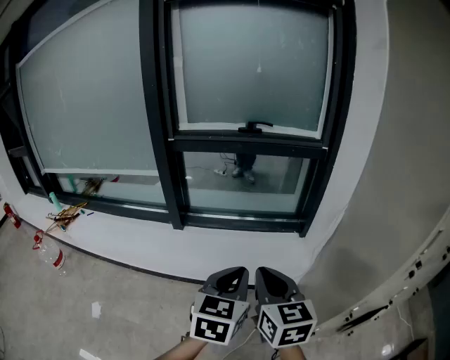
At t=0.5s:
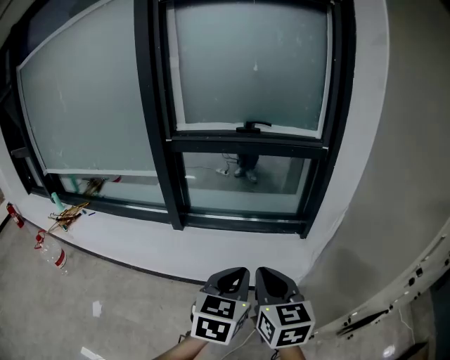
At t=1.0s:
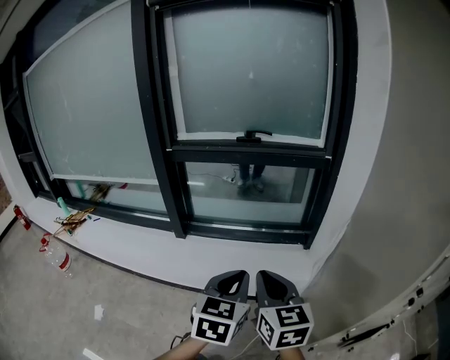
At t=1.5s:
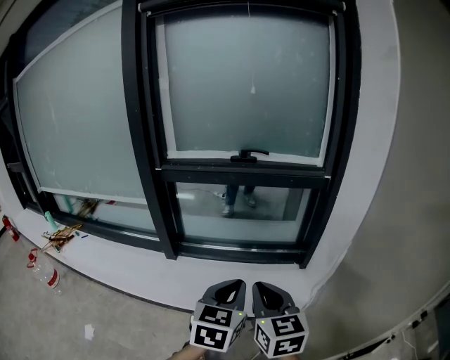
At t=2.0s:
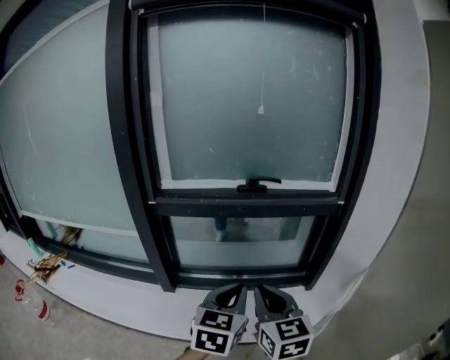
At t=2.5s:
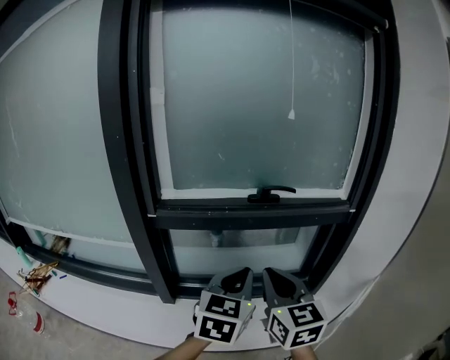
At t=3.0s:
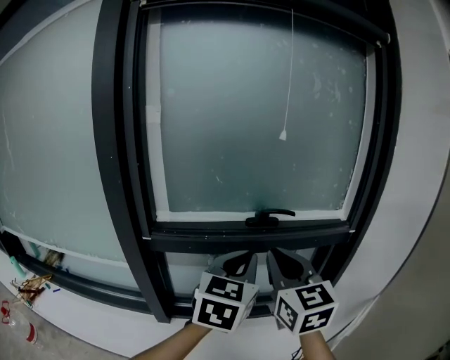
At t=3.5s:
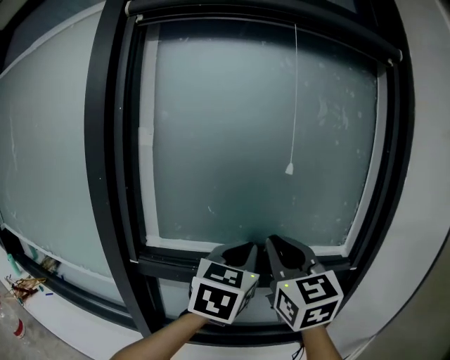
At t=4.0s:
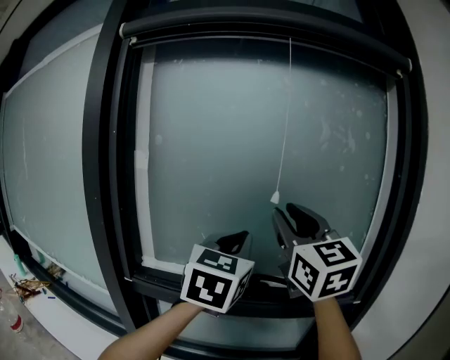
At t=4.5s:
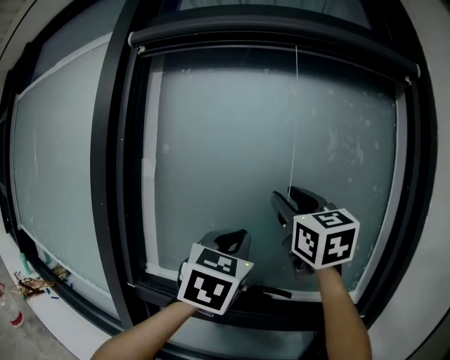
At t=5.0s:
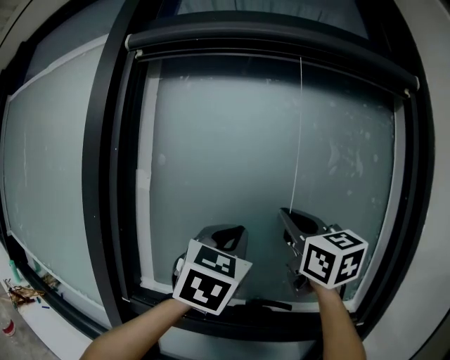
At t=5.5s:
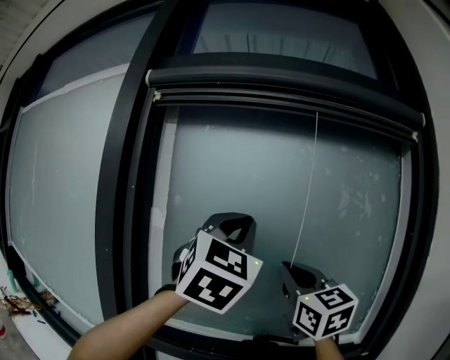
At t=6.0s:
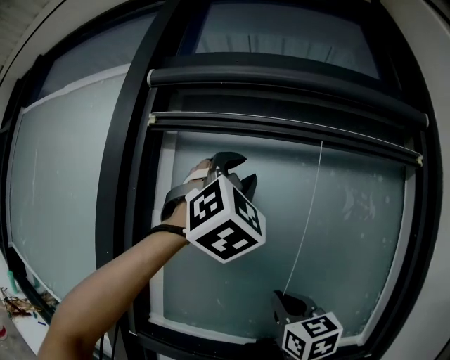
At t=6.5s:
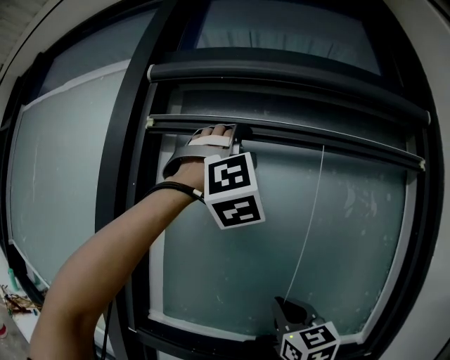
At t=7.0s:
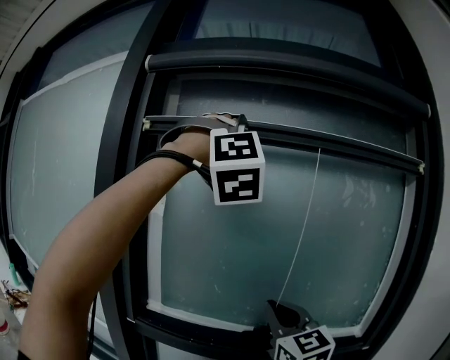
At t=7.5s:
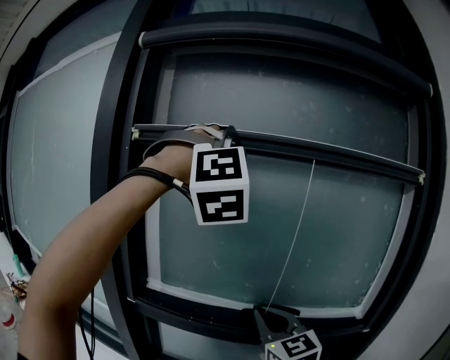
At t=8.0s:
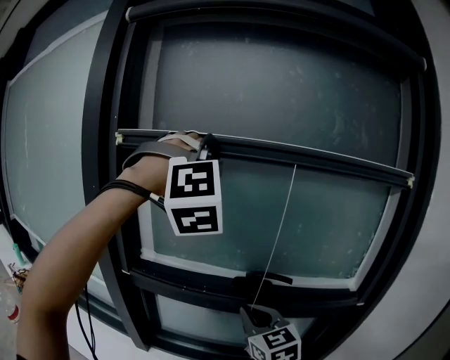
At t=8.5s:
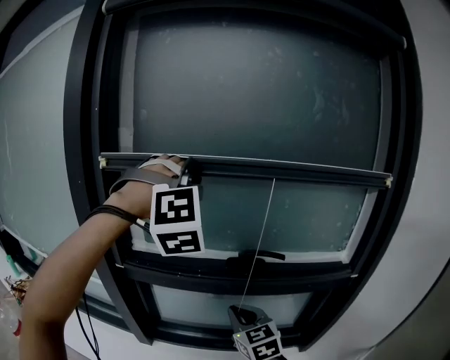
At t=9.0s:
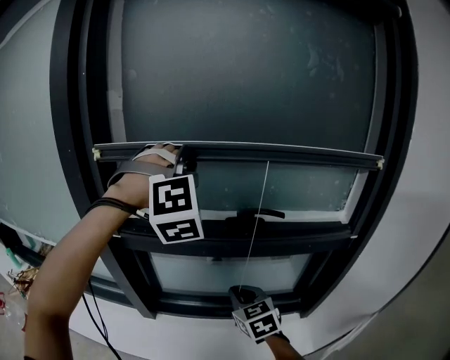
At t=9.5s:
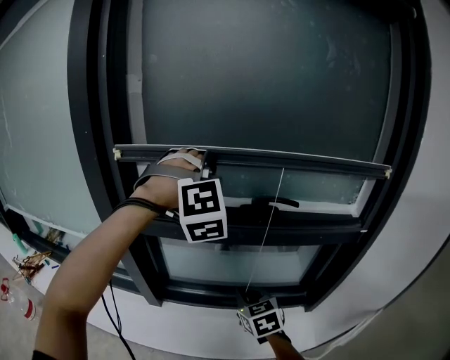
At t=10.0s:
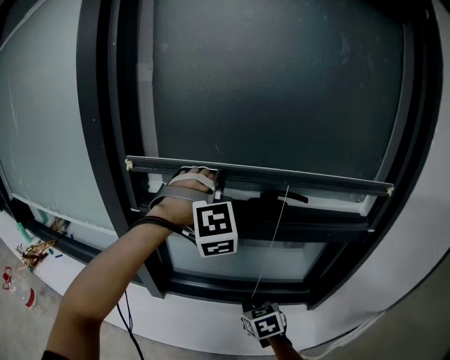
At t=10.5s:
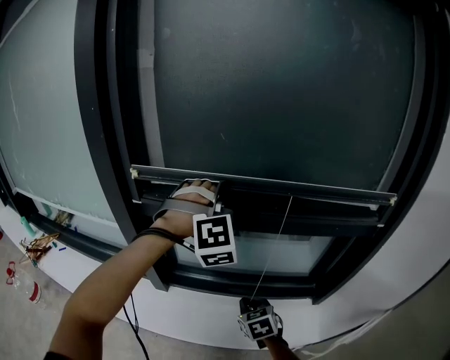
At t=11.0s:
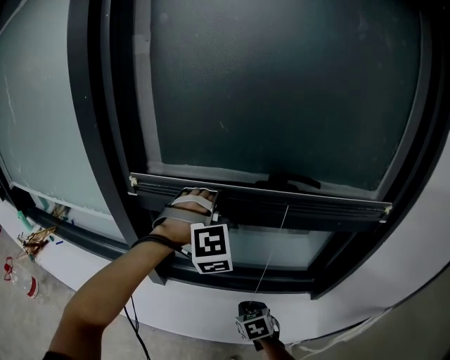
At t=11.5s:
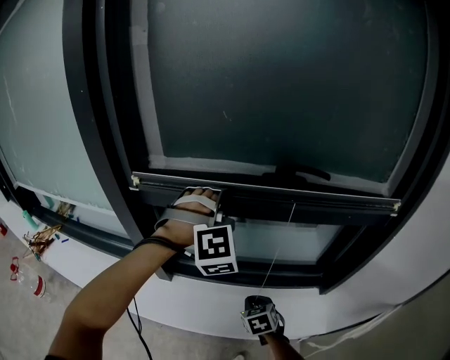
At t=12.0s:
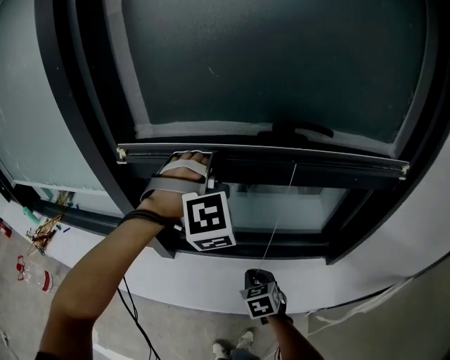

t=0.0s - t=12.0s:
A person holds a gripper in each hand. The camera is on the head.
t=0.0s - t=2.0s: The right gripper changes place by approximately 40 cm.
t=2.0s - t=4.0s: The right gripper ends up roughly 60 cm from where it was, rotates some 30 degrees, and opens up.
t=4.0s - t=6.0s: The right gripper changes place by roughly 10 cm, and closes up.
t=6.0s - t=8.0s: The right gripper goes some 25 cm downward, and changes its angle by roughly 20 degrees.
t=8.0s - t=10.0s: The right gripper heads downward, covering about 30 cm, and turns by about 30 degrees.
t=10.0s - t=12.0s: The right gripper travels downward by some 15 cm.

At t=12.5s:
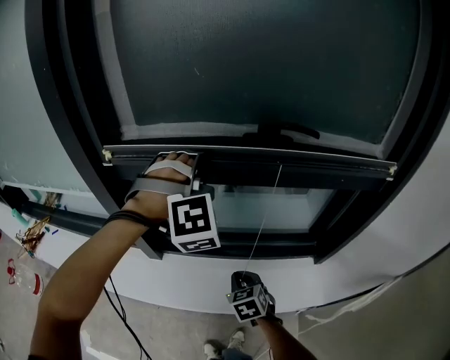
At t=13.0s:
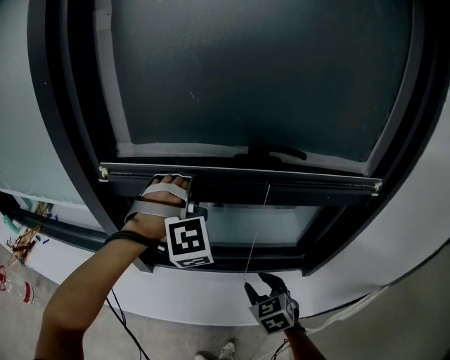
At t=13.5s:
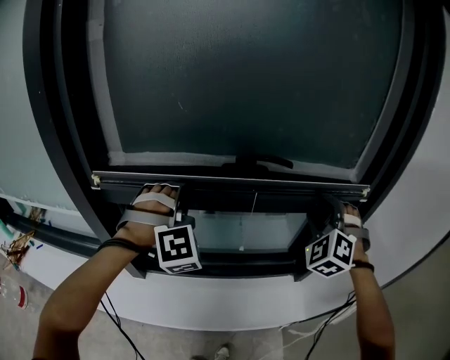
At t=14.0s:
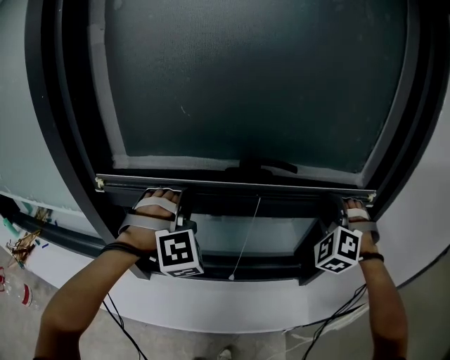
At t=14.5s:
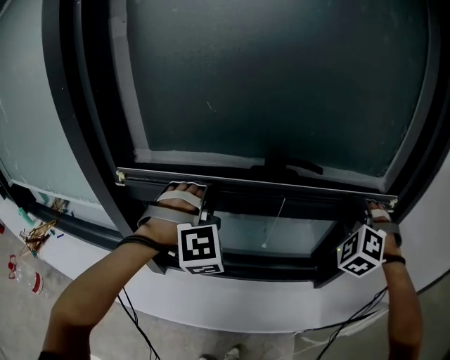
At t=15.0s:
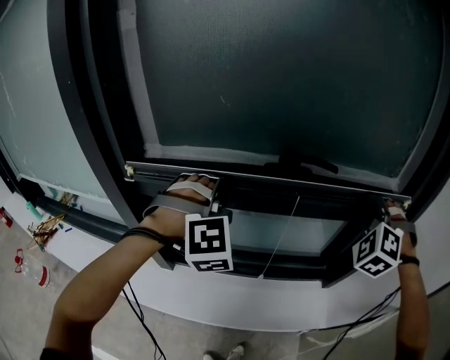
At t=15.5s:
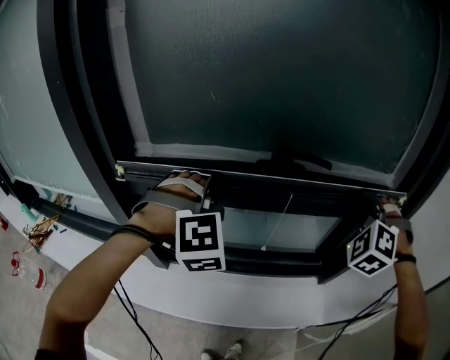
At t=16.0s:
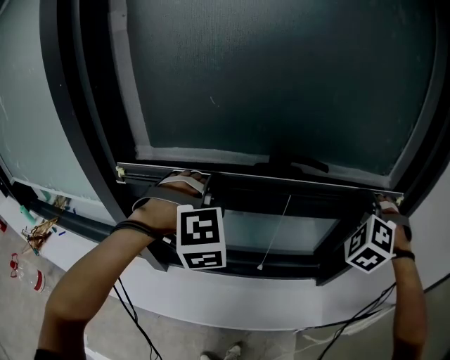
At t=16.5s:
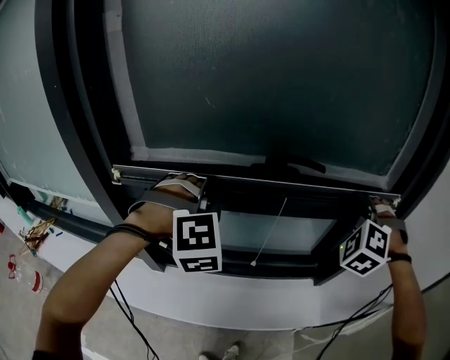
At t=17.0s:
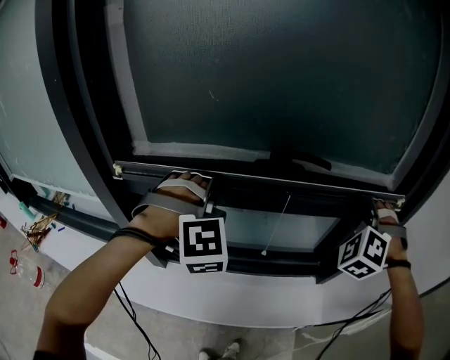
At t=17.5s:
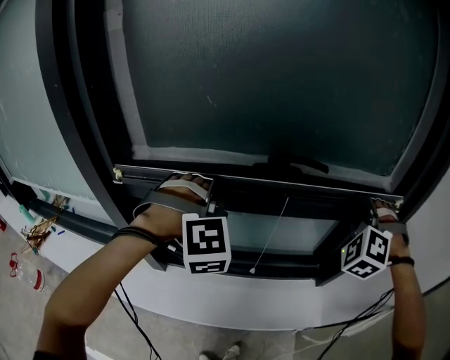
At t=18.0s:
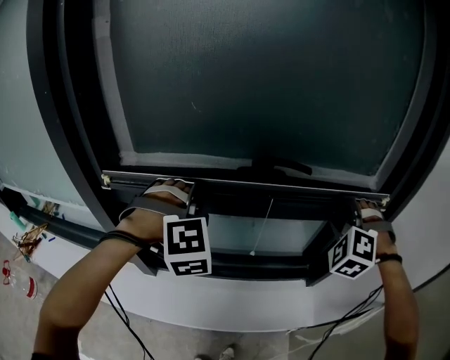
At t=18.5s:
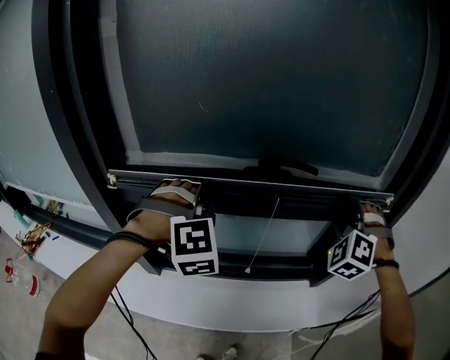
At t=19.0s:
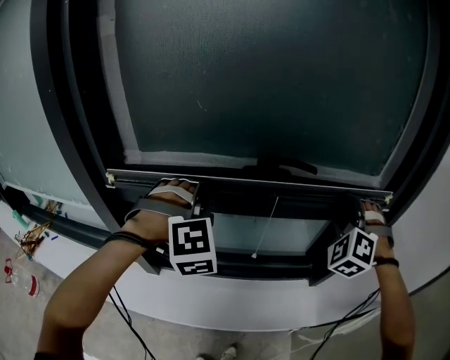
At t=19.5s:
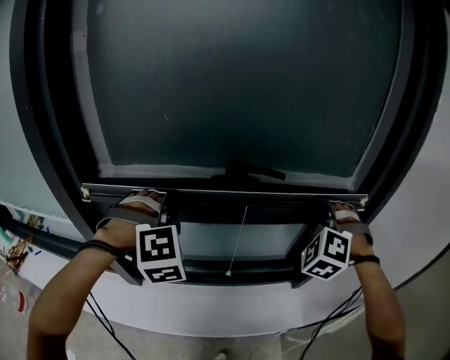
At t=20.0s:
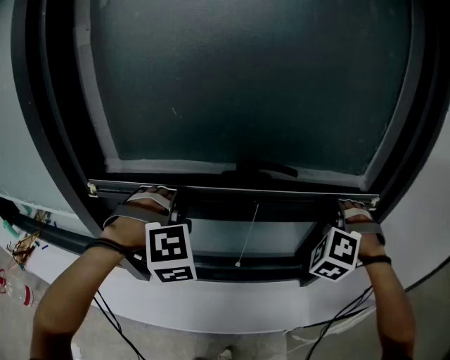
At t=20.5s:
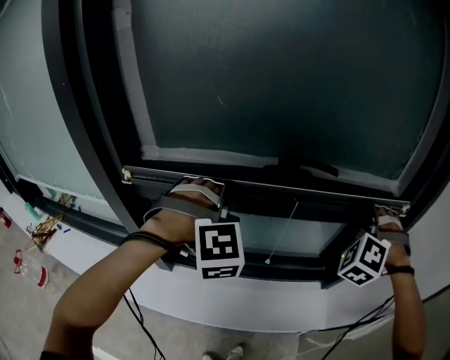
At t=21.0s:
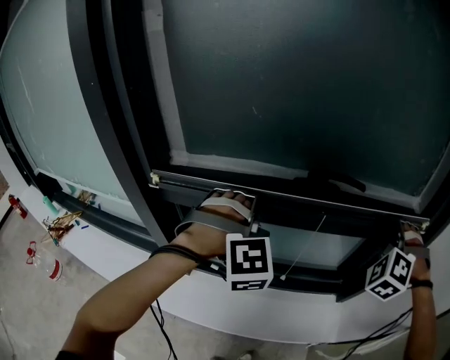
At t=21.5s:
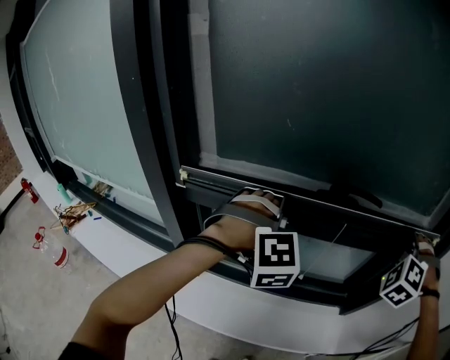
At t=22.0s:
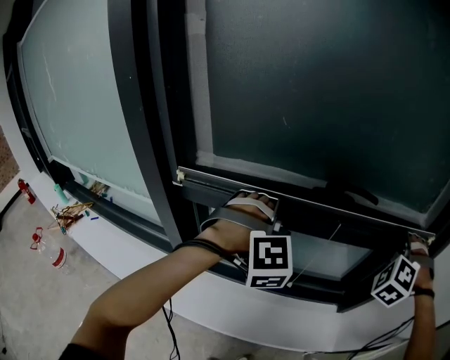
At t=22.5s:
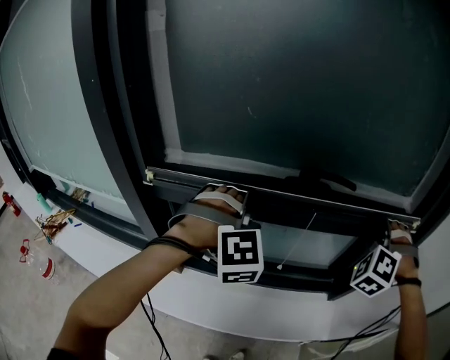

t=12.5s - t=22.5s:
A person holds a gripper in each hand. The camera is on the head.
t=12.5s - t=14.5s: The right gripper is displaced upward by some 35 cm, rolls counterclockwise, seen from behind, by about 60 degrees, and opens up.
t=16.5s - t=18.5s: The right gripper opens its fingers.
t=18.5s - t=20.5s: The right gripper closes.

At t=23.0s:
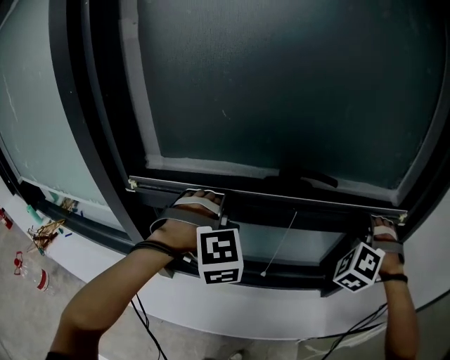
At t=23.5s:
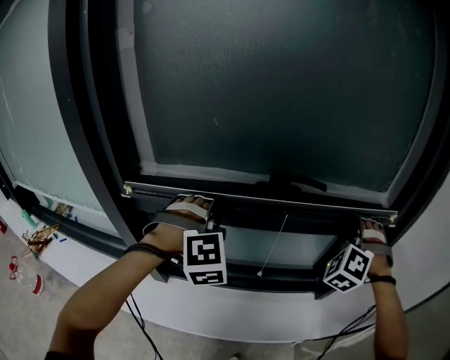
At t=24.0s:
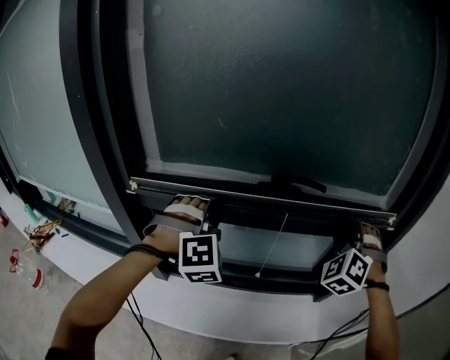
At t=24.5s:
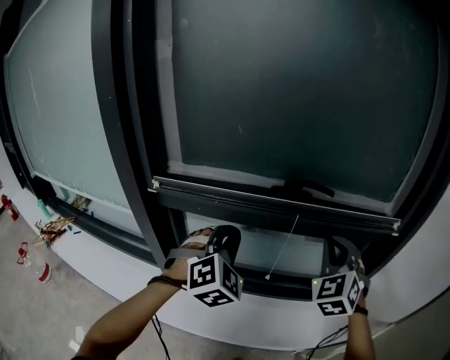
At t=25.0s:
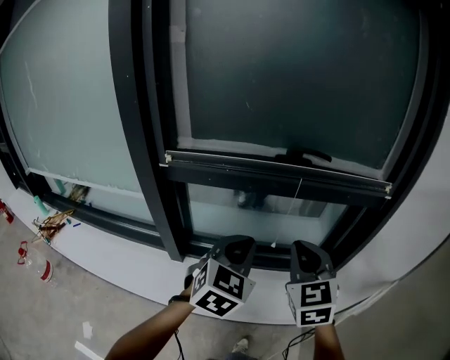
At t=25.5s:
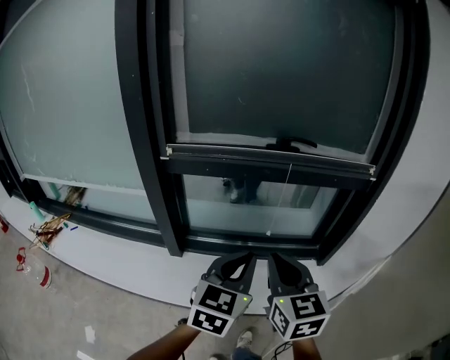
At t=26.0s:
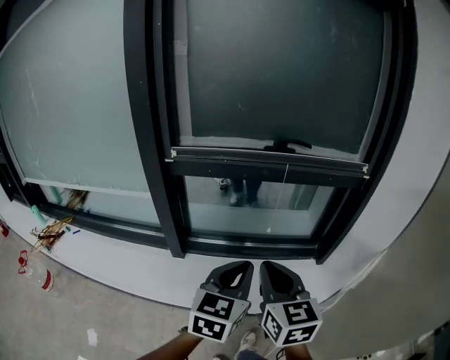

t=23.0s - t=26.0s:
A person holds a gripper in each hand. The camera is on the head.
t=23.0s - t=24.5s: The right gripper changes place by about 15 cm, turns by roughly 40 degrees, and closes its fingers.
t=24.5s - t=26.0s: The right gripper changes place by some 40 cm, and rolls clockwise, seen from behind, by approximately 50 degrees.

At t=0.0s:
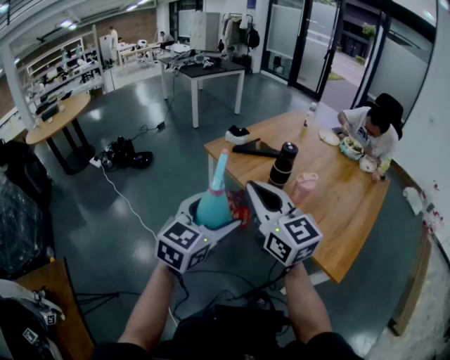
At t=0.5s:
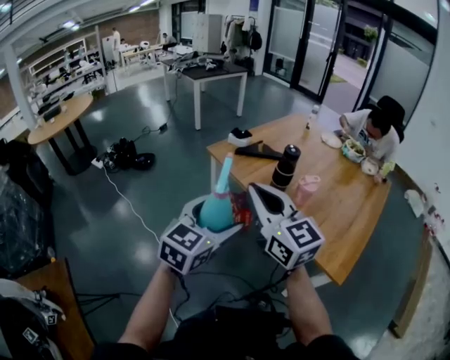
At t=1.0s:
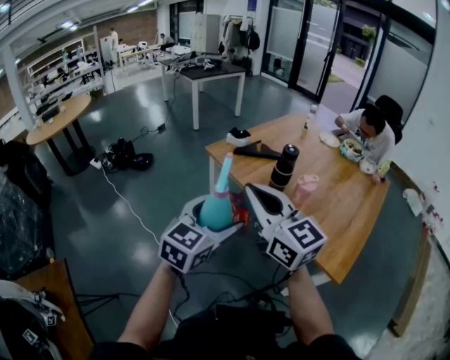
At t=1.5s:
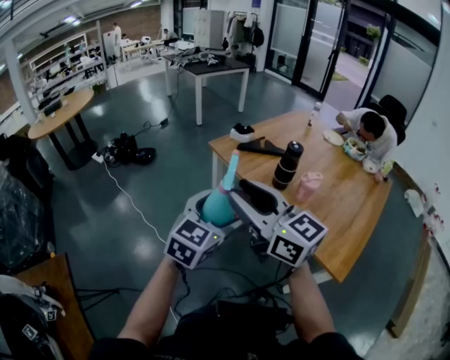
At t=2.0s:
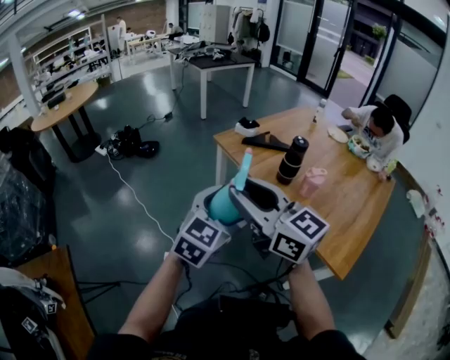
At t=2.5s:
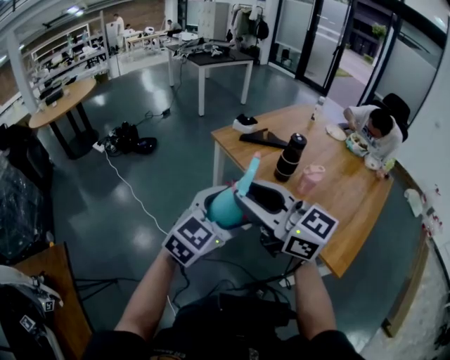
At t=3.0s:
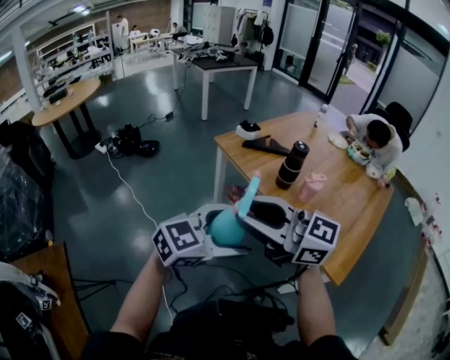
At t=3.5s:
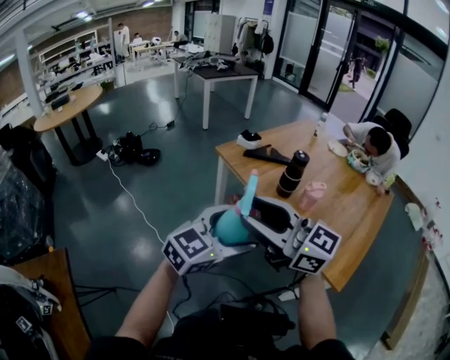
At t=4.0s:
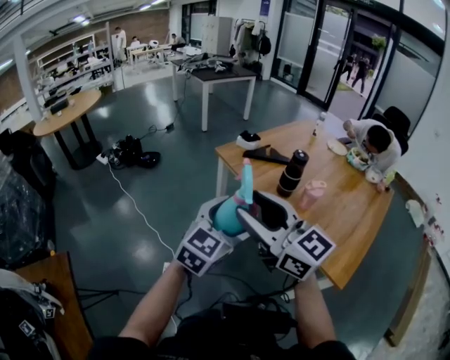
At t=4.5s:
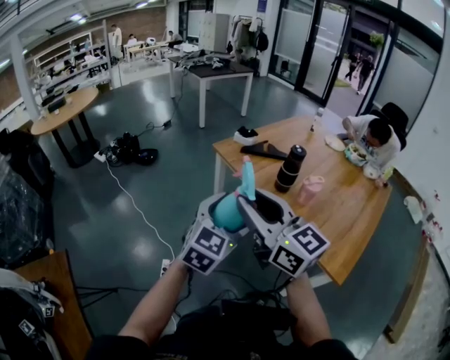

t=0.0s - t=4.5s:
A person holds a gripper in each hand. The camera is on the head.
t=0.0s - t=2.0s: The right gripper shifts about 5 cm to the left, and opens.
